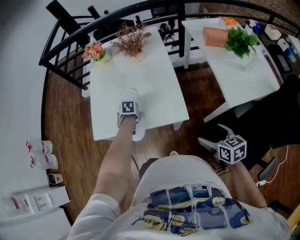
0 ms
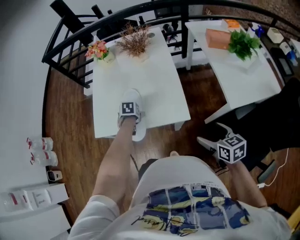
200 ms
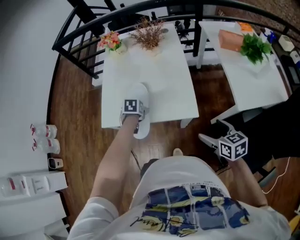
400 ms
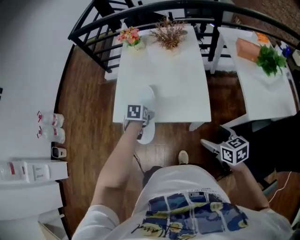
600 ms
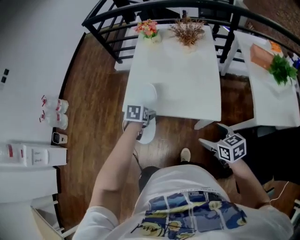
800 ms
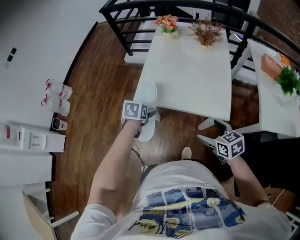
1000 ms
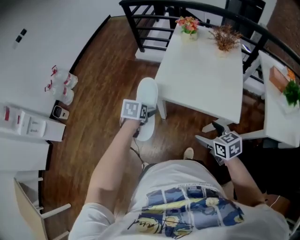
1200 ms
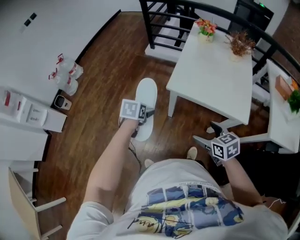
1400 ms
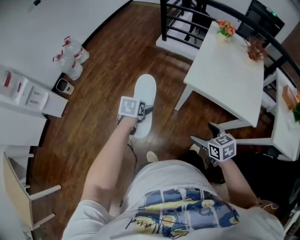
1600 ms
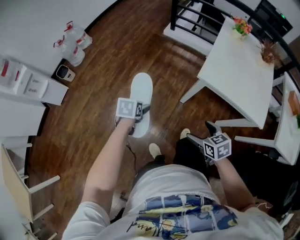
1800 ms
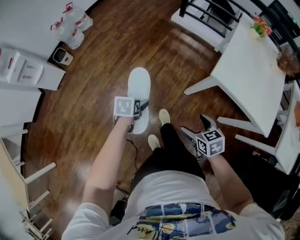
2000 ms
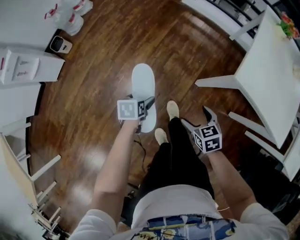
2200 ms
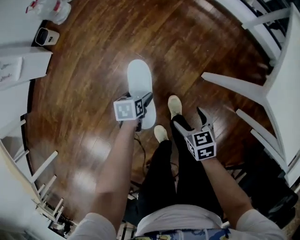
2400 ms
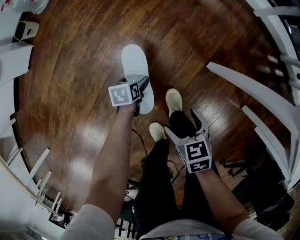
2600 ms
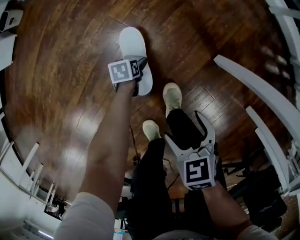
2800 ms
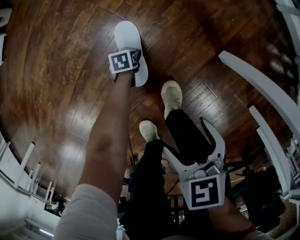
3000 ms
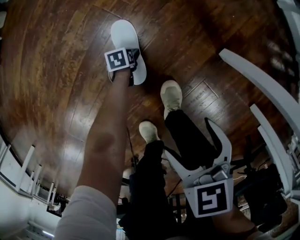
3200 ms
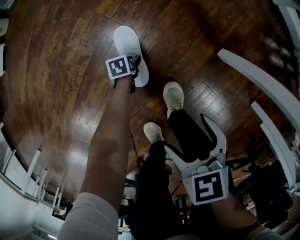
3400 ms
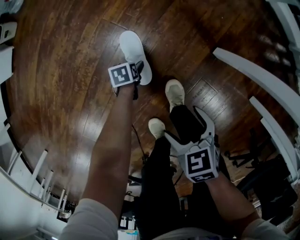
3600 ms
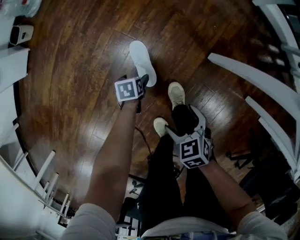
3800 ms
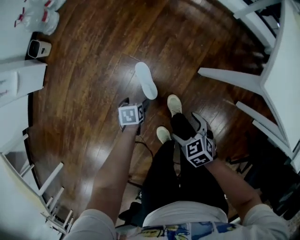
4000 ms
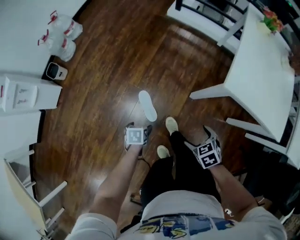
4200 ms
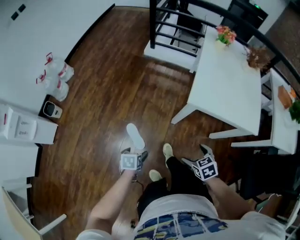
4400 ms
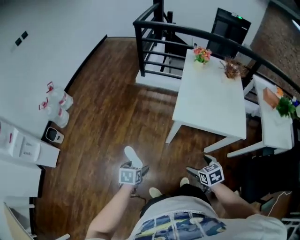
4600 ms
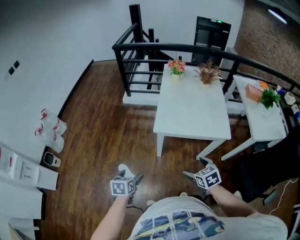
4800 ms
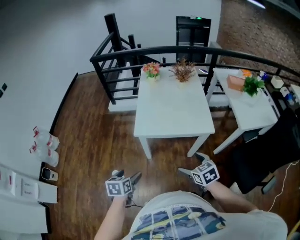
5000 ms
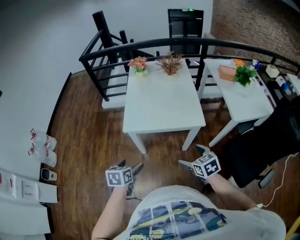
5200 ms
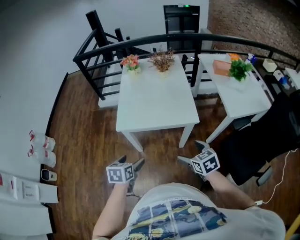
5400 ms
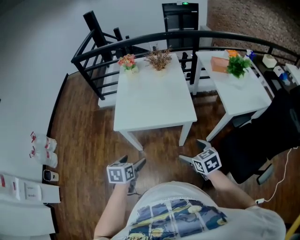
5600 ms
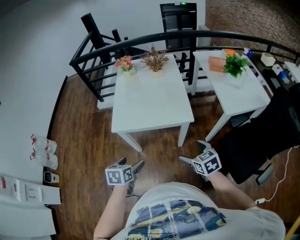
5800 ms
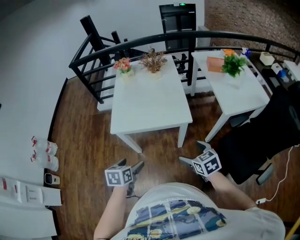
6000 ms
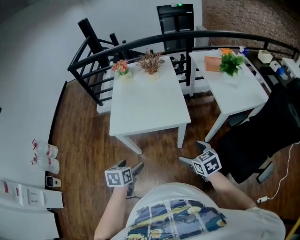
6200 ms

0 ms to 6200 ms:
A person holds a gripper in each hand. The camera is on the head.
0 ms to 1600 ms: Both grippers are carried roughly 60 cm. The left gripper rotates some 30 degrees. The right gripper changes its angle by about 40 degrees.
1600 ms to 3200 ms: The left gripper goes about 90 cm downward, and rotates approximately 40 degrees. The right gripper travels downward by roughly 60 cm, and swivels some 30 degrees.
3200 ms to 4600 ms: The right gripper moves upward, some 60 cm, and turns by about 40 degrees, while the left gripper travels upward by about 90 cm, and rolls clockwise, seen from behind, by about 40 degrees.
4600 ms to 6200 ms: Both grippers are carried to the right, some 40 cm. The right gripper rotates roughly 20 degrees.

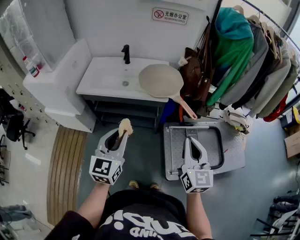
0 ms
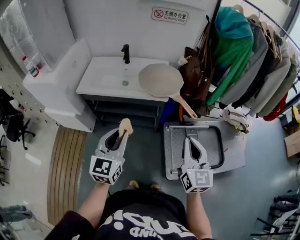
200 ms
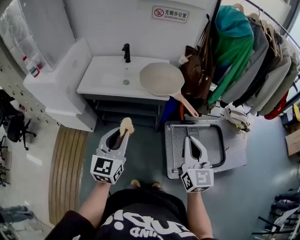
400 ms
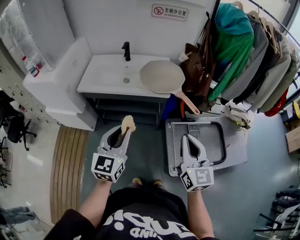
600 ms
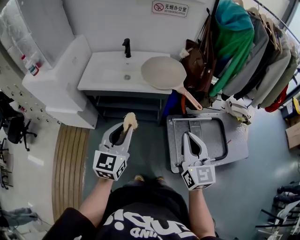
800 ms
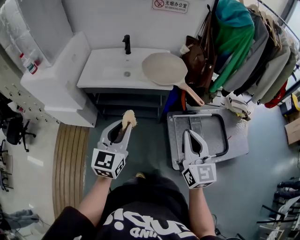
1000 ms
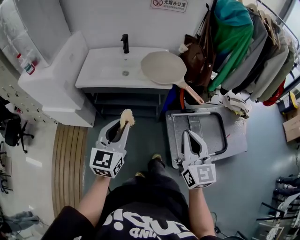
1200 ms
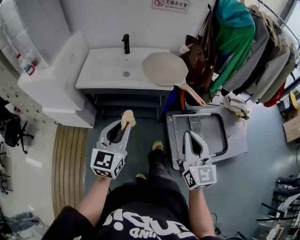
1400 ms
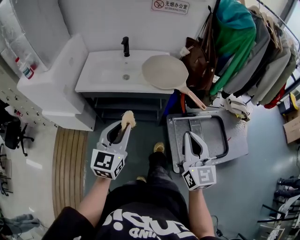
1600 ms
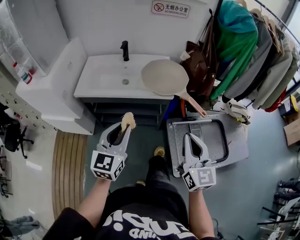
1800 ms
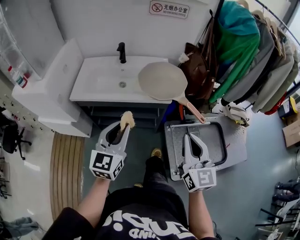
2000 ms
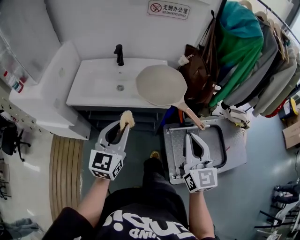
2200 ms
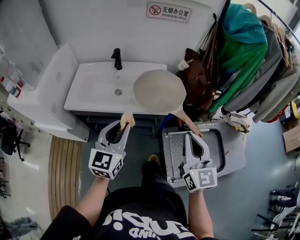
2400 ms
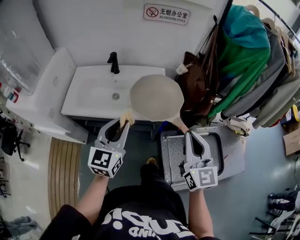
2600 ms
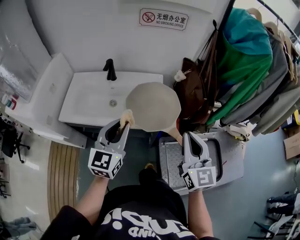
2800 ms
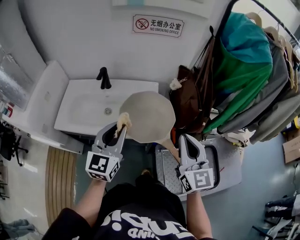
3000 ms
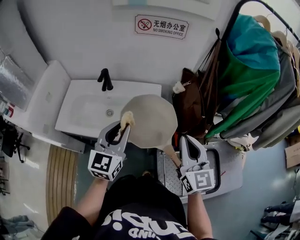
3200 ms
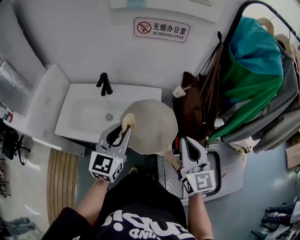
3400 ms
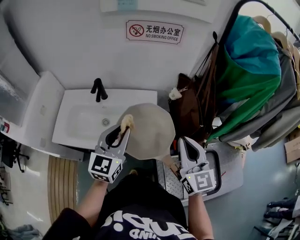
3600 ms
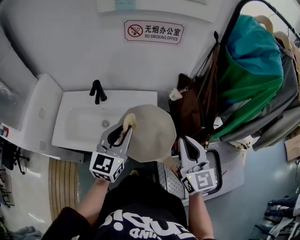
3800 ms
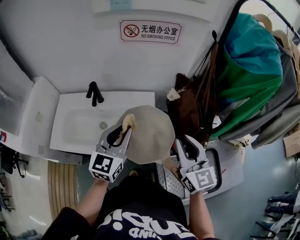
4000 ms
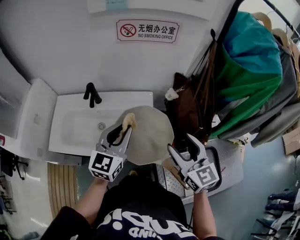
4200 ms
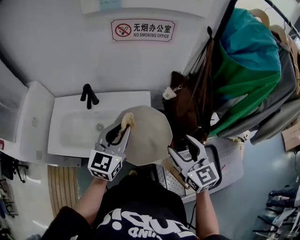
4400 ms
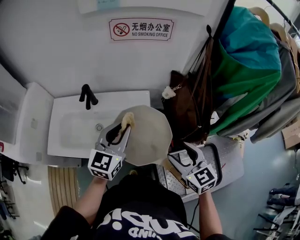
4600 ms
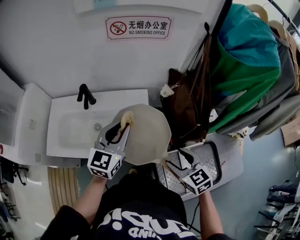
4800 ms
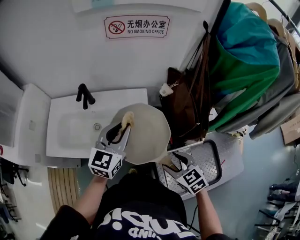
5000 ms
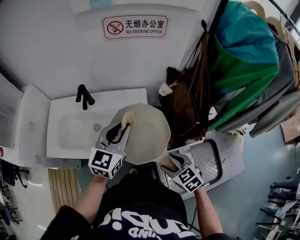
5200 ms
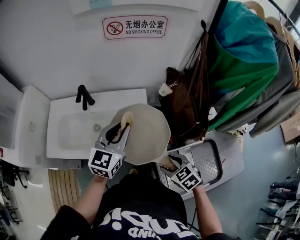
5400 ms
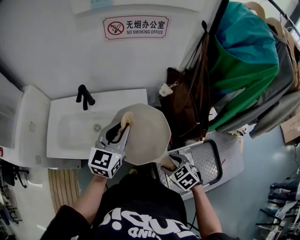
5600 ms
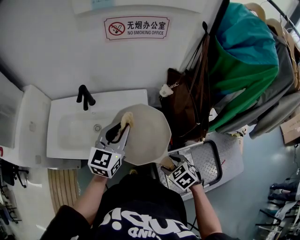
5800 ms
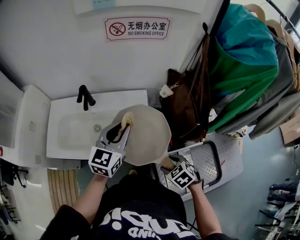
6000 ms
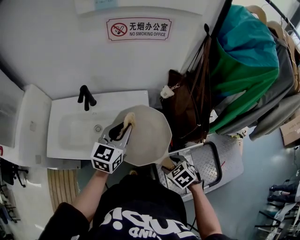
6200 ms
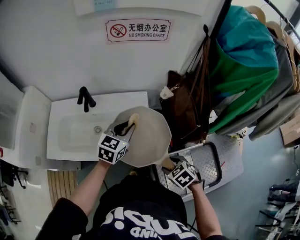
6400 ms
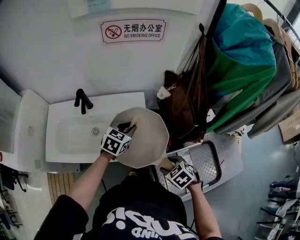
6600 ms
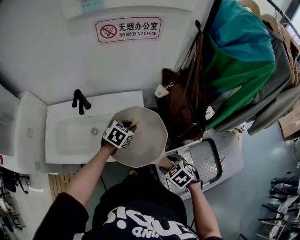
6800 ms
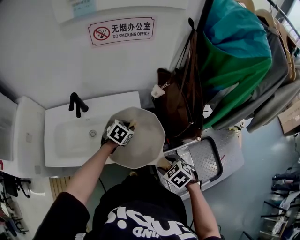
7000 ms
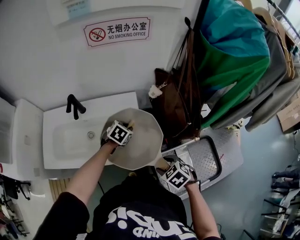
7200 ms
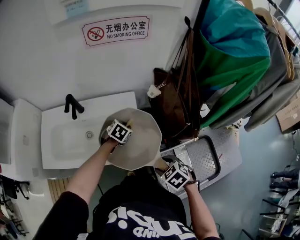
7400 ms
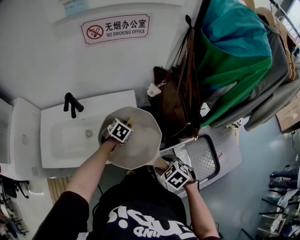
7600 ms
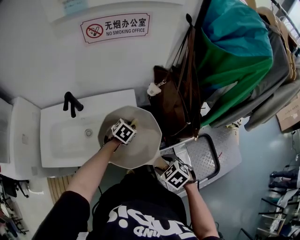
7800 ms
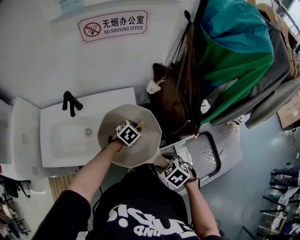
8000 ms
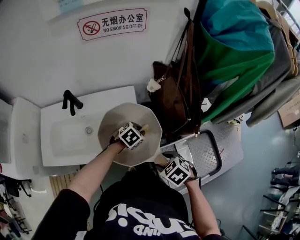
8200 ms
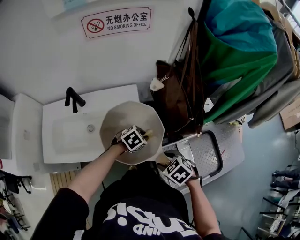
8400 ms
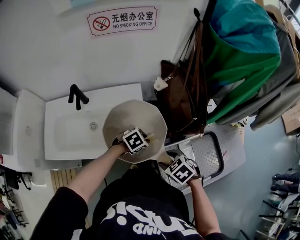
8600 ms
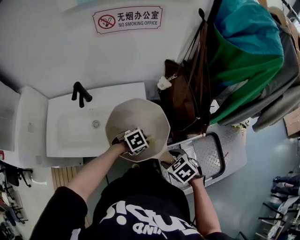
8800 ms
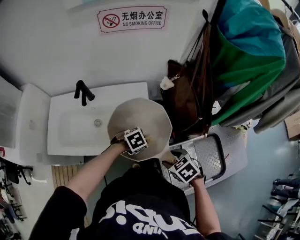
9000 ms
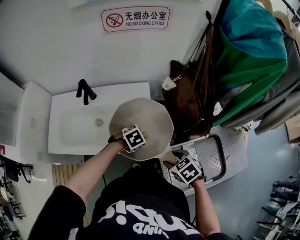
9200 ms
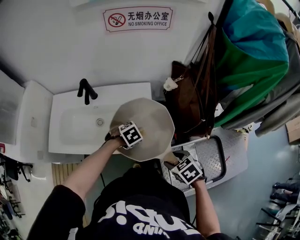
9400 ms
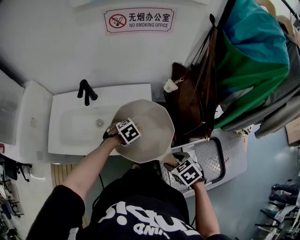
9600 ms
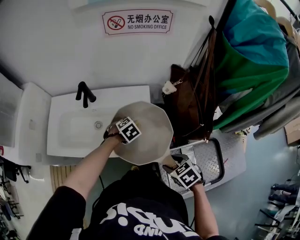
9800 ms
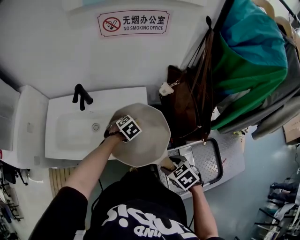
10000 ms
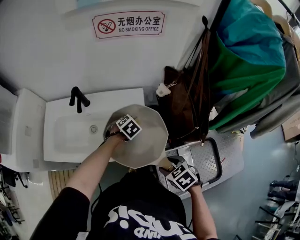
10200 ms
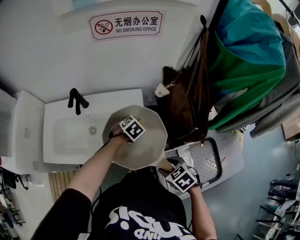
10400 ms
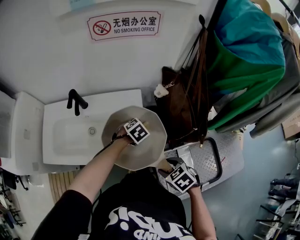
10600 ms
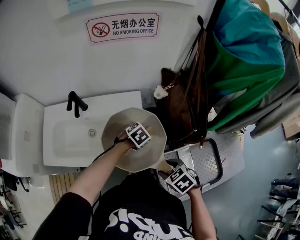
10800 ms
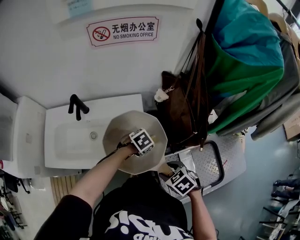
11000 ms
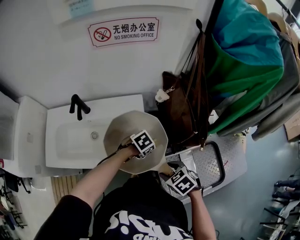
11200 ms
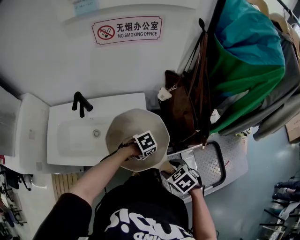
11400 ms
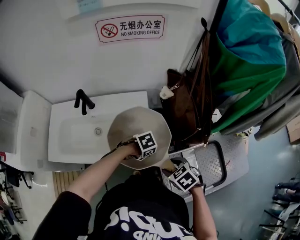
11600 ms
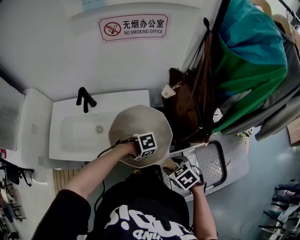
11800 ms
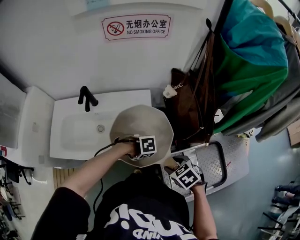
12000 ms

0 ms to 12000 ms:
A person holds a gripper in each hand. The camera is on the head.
0 ms to 1600 ms: The right gripper moves to the left, some 5 cm.
1600 ms to 3000 ms: The grippers both shift forward by approximately 30 cm.
3000 ms to 4400 ms: Both grippers travel together forward, some 10 cm. The right gripper opens.
4400 ms to 6000 ms: The right gripper shifts some 20 cm downward, and angles its fingers downward, by approximately 50 degrees.
6000 ms to 7600 ms: The left gripper goes about 25 cm downward, and angles its fingers downward, by approximately 50 degrees.
7600 ms to 9000 ms: The left gripper shifts by approximately 15 cm, and swivels approximately 30 degrees.
9000 ms to 10400 ms: The left gripper ends up approximately 15 cm from where it was.
10400 ms to 12000 ms: The left gripper changes place by roughly 15 cm, and rotates some 40 degrees.

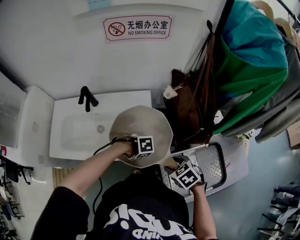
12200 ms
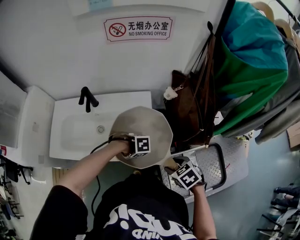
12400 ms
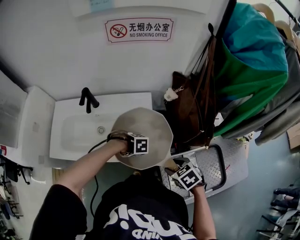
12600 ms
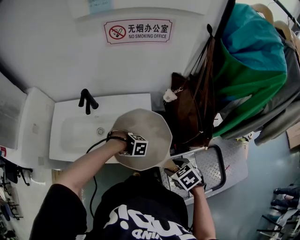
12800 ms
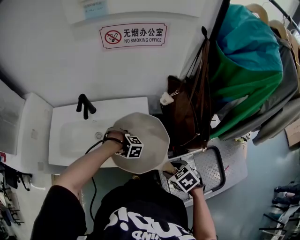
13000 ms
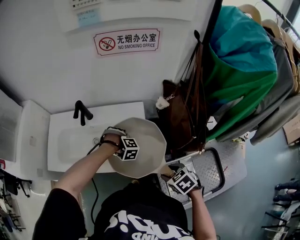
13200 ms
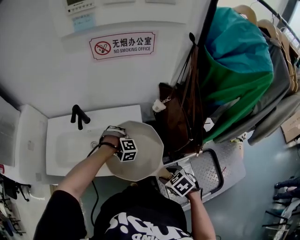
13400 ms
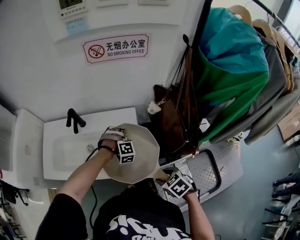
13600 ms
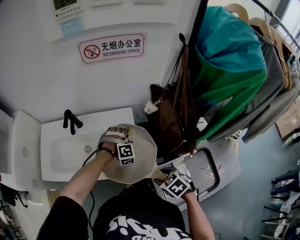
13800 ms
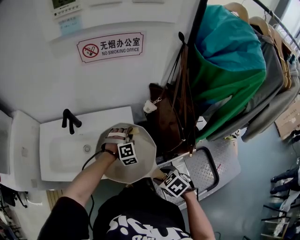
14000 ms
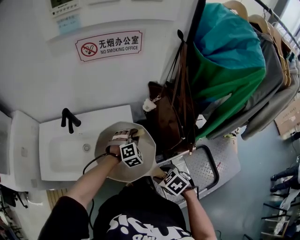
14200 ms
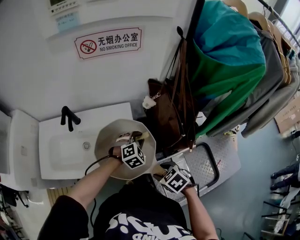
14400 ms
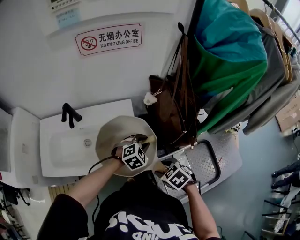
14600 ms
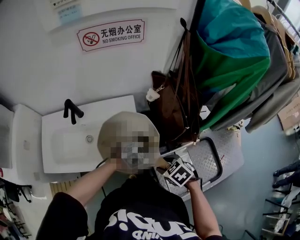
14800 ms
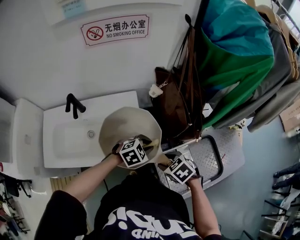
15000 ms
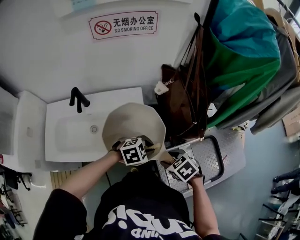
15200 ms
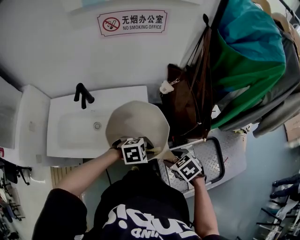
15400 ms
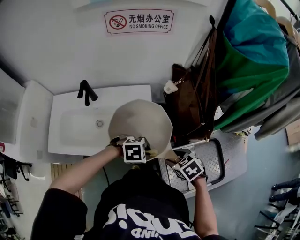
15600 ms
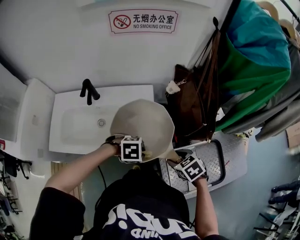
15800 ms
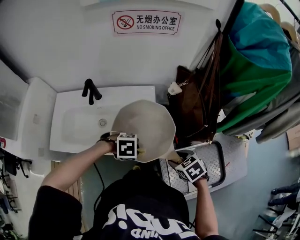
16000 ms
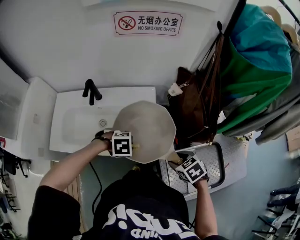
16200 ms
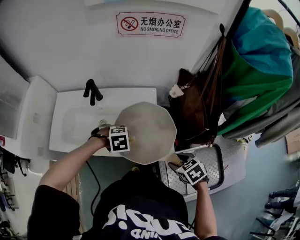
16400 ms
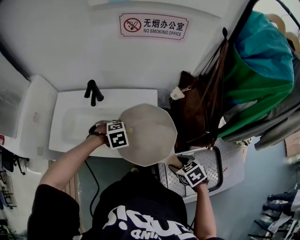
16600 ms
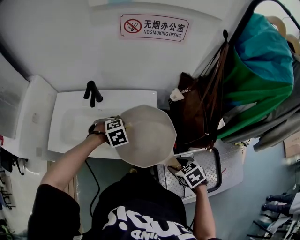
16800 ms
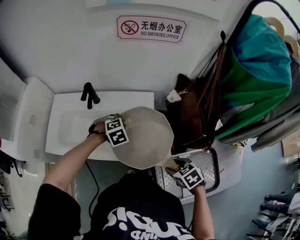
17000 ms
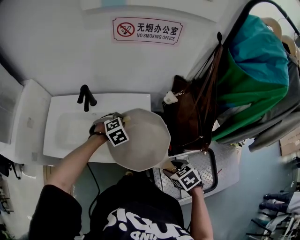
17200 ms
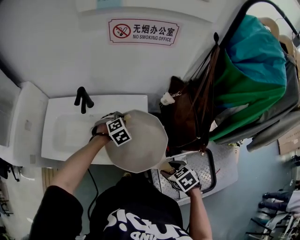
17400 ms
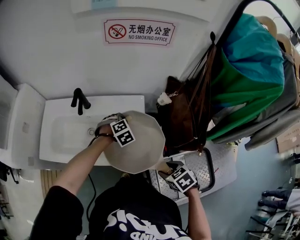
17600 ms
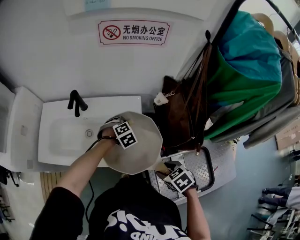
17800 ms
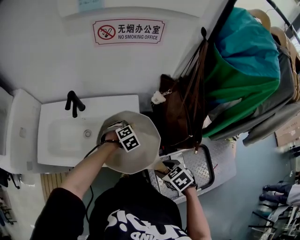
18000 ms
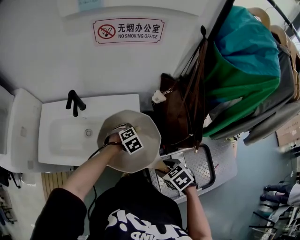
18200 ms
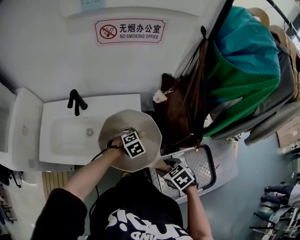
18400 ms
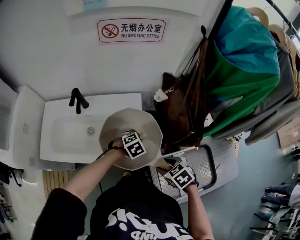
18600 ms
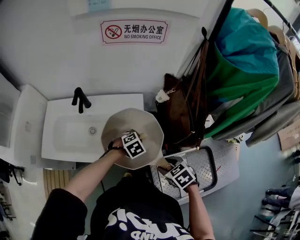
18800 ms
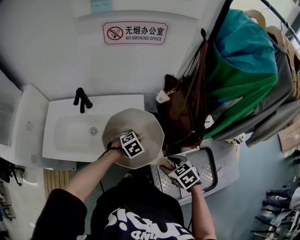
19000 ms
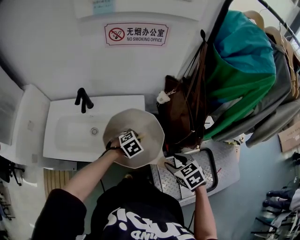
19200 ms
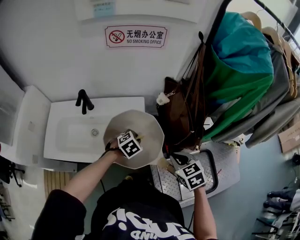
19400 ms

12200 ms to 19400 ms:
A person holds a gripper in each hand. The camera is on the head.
12200 ms to 13600 ms: The left gripper moves approximately 20 cm, and rotates some 60 degrees.
13600 ms to 15000 ms: The left gripper shifts by roughly 20 cm, and turns by some 60 degrees.
15000 ms to 16600 ms: The left gripper moves some 20 cm, and changes its angle by some 30 degrees.
16600 ms to 18000 ms: The left gripper moves approximately 15 cm.
18000 ms to 19400 ms: The left gripper moves approximately 10 cm, while the right gripper heads upward, covering about 5 cm, changes its angle by approximately 20 degrees, and closes.
